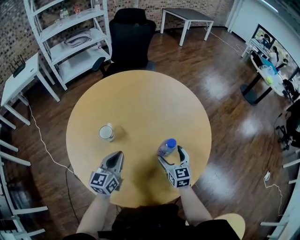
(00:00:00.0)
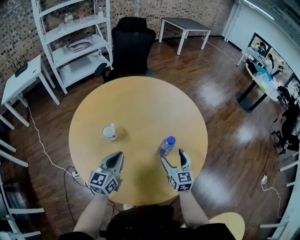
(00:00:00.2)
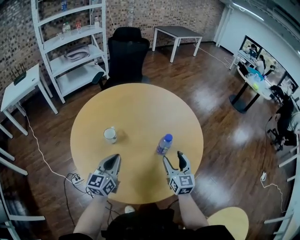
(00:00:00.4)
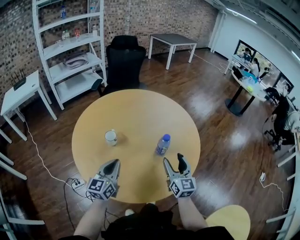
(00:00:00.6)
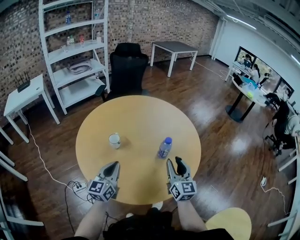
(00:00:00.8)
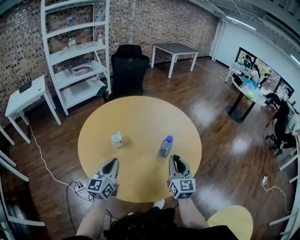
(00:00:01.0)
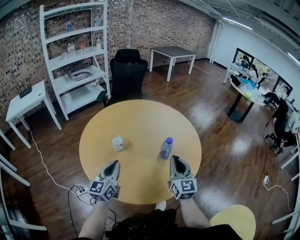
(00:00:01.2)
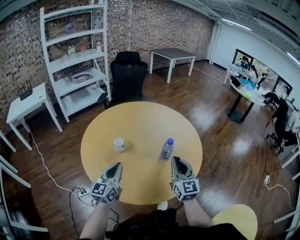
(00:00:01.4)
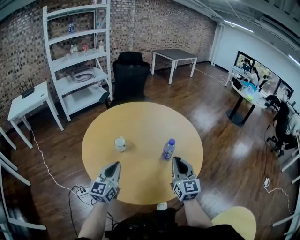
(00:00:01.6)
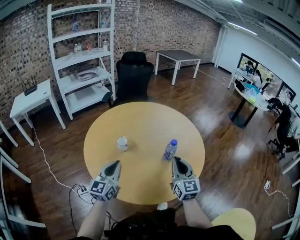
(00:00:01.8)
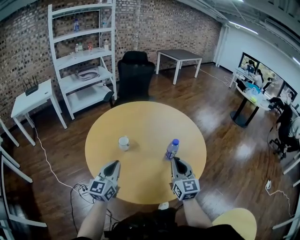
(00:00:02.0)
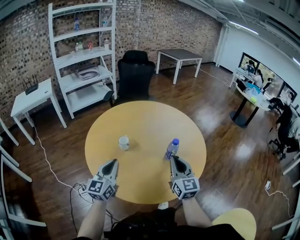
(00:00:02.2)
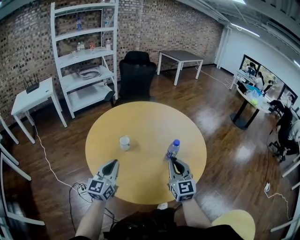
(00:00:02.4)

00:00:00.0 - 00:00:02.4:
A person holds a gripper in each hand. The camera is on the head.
00:00:00.0 - 00:00:01.2: The right gripper heads upward and backward, covering some 20 cm, swivels approximately 30 degrees, and closes its fingers. The left gripper travels backward, upward and to the left by roughly 15 cm.
00:00:01.2 - 00:00:02.4: There are only small adjustments of the grippers.

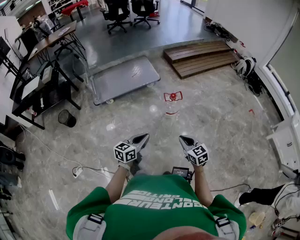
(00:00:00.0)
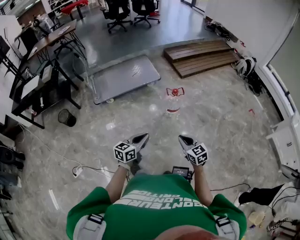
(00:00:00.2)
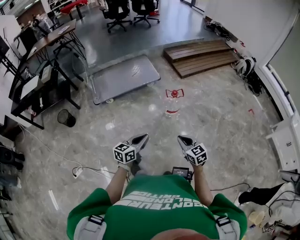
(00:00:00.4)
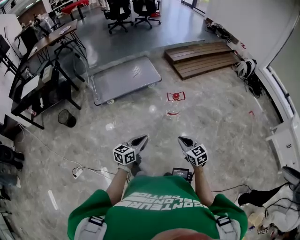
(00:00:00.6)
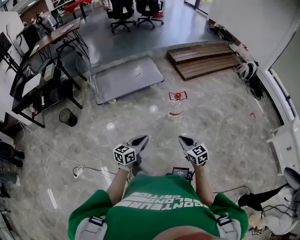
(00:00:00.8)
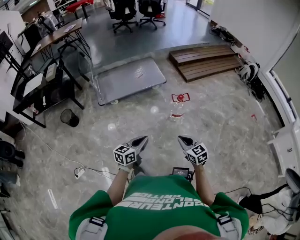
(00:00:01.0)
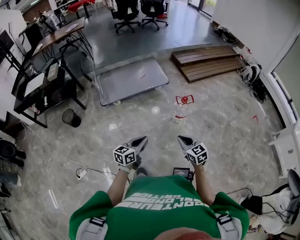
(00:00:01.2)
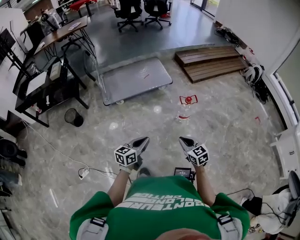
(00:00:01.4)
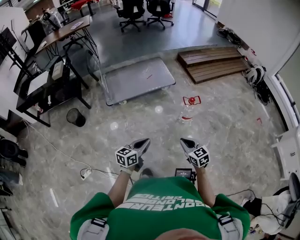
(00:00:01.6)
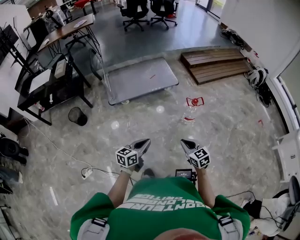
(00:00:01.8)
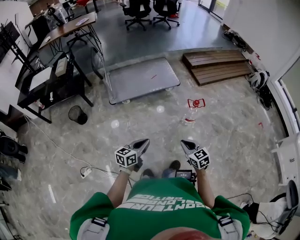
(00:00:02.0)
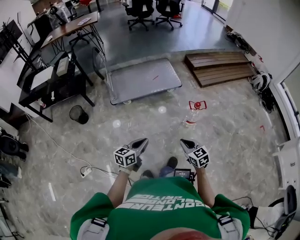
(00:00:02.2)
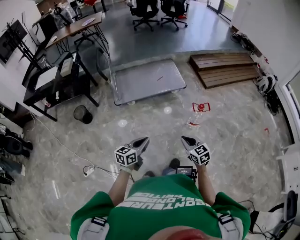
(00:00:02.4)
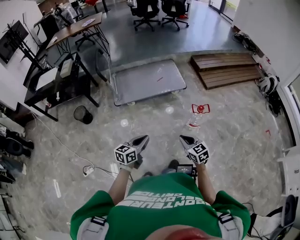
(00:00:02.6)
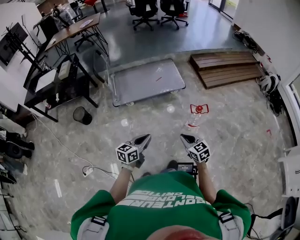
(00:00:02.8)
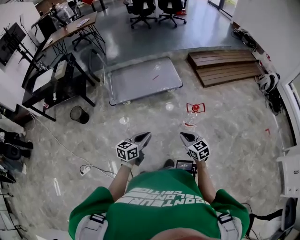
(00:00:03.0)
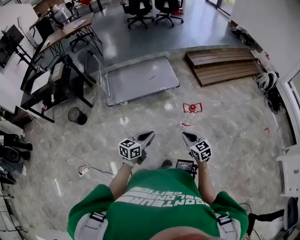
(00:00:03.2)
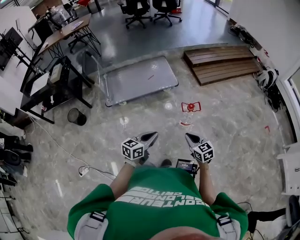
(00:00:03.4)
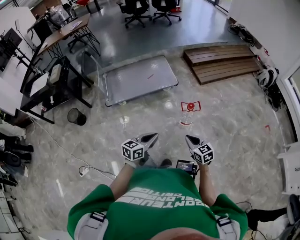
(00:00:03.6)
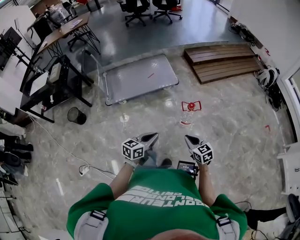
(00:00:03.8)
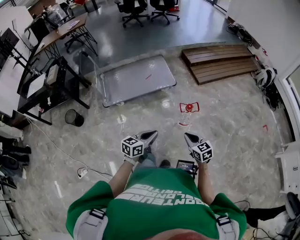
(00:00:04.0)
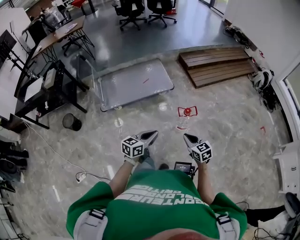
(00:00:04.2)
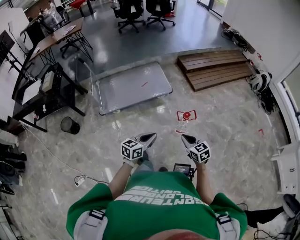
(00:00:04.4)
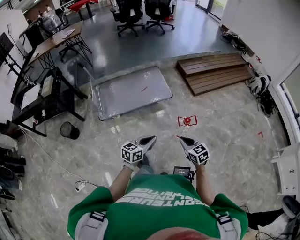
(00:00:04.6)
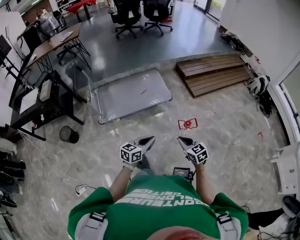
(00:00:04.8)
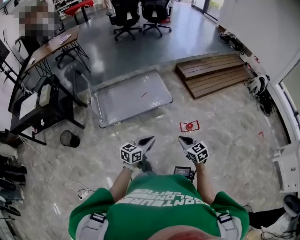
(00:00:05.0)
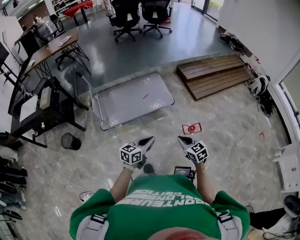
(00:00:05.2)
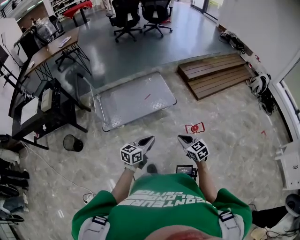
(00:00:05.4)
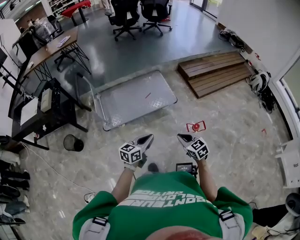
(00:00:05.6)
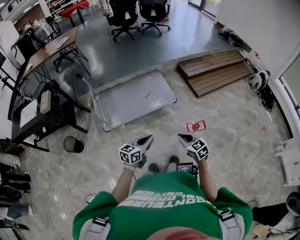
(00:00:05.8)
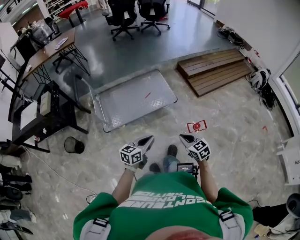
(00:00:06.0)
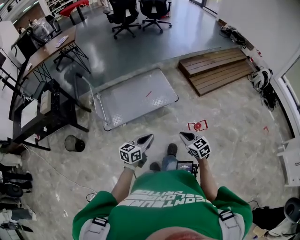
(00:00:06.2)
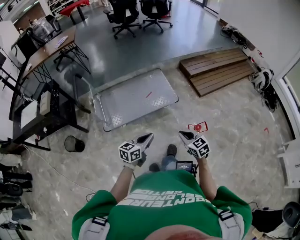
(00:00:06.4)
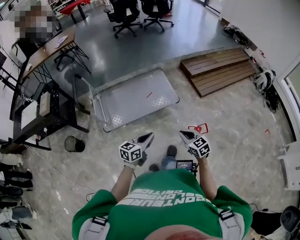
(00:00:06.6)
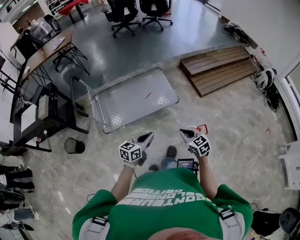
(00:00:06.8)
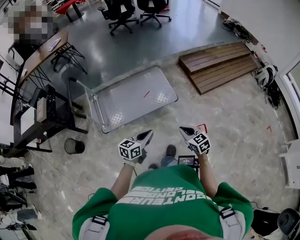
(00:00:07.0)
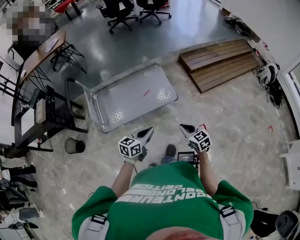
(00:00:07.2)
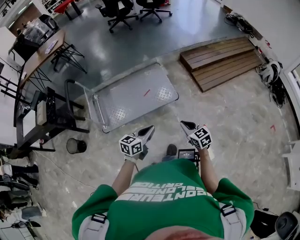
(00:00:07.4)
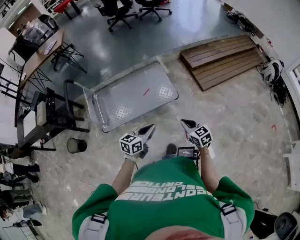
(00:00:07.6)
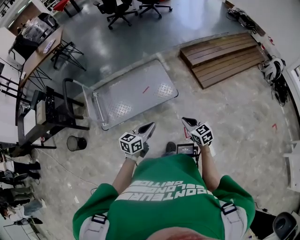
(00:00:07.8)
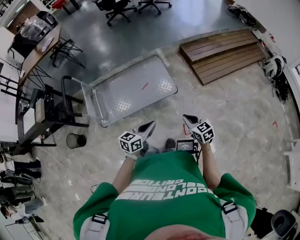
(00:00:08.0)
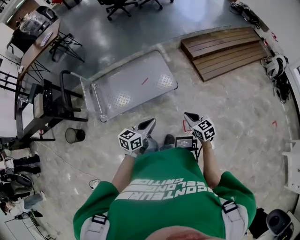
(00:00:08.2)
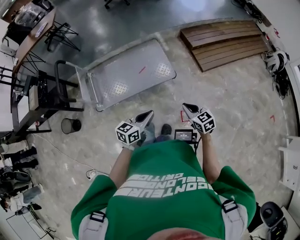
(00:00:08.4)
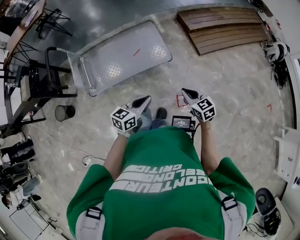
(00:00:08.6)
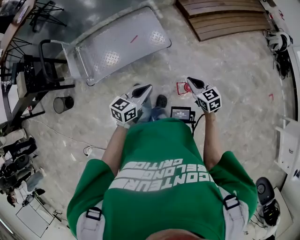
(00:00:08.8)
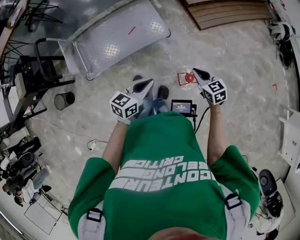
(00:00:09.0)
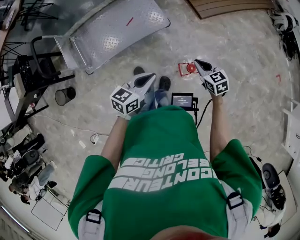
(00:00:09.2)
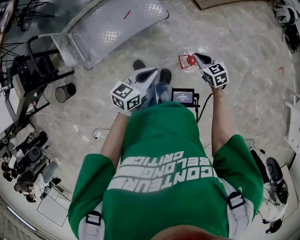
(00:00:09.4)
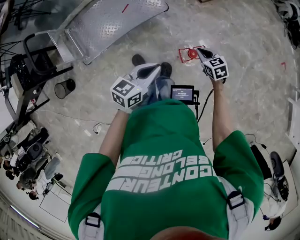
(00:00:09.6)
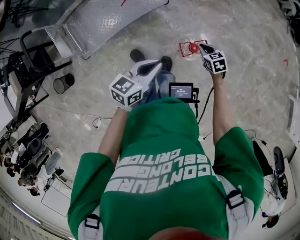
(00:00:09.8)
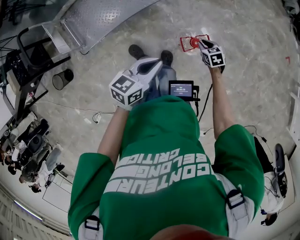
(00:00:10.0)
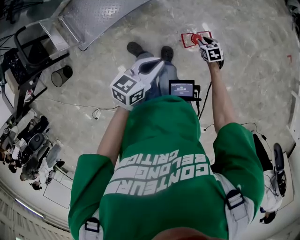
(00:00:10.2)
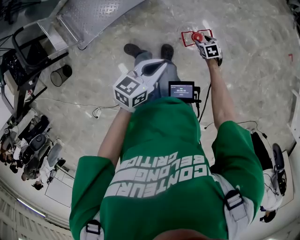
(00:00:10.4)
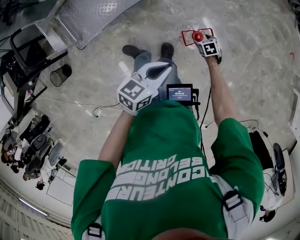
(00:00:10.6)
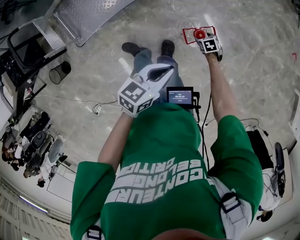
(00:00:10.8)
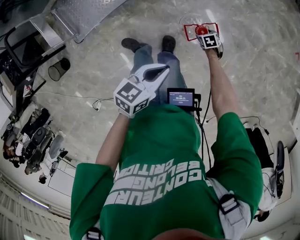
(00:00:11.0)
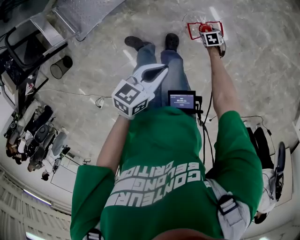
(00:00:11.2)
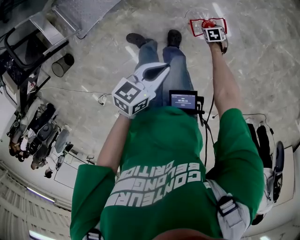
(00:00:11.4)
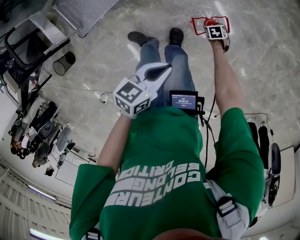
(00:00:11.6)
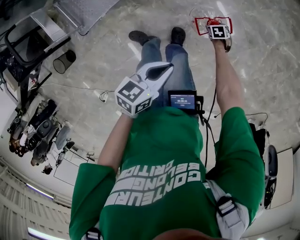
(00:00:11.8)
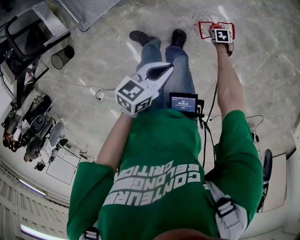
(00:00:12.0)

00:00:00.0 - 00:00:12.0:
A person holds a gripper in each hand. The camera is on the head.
00:00:00.0 - 00:00:01.6: The grippers both shift to the left by about 15 cm.
00:00:01.6 - 00:00:03.0: The two grippers go some 15 cm forward and to the right.
00:00:03.0 - 00:00:04.4: The two grippers go roughly 10 cm forward and to the right.
00:00:04.4 - 00:00:06.0: Both grippers travel together to the left and forward, some 20 cm.
00:00:06.0 - 00:00:07.6: The two grippers go roughly 25 cm forward and to the right.
00:00:07.6 - 00:00:09.0: The left gripper travels to the right by roughly 5 cm. The right gripper travels to the right and downward by roughly 15 cm.
00:00:09.0 - 00:00:10.4: The right gripper heads downward, covering roughly 30 cm, turns by roughly 30 degrees, and opens. The left gripper heads to the right and downward, covering about 10 cm.
00:00:10.4 - 00:00:12.0: The right gripper moves downward, about 15 cm. The left gripper heads downward, covering about 10 cm.

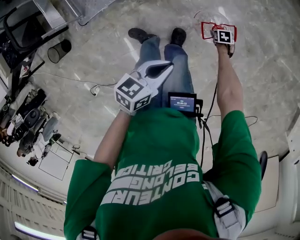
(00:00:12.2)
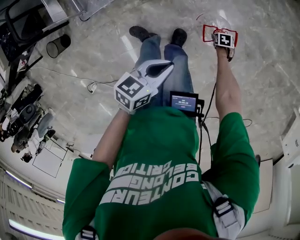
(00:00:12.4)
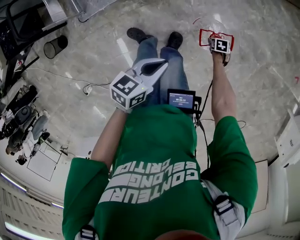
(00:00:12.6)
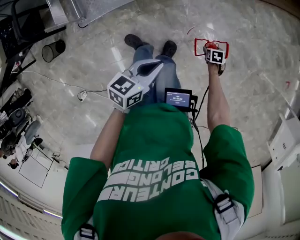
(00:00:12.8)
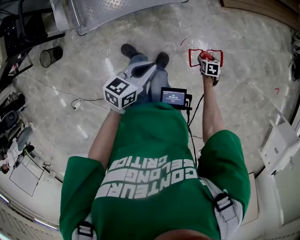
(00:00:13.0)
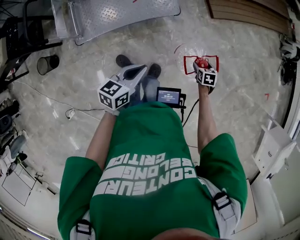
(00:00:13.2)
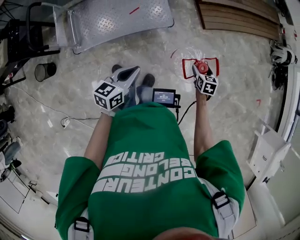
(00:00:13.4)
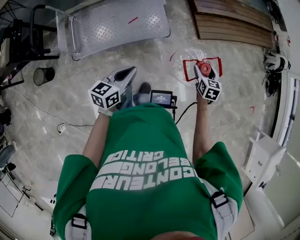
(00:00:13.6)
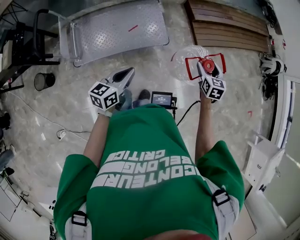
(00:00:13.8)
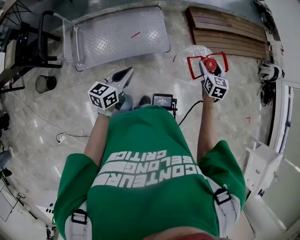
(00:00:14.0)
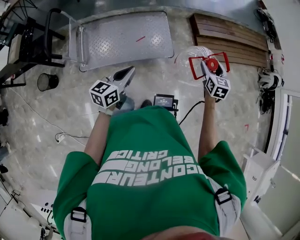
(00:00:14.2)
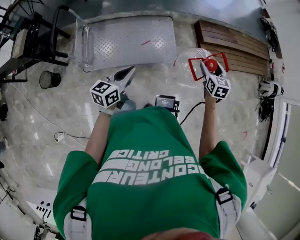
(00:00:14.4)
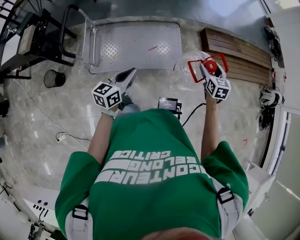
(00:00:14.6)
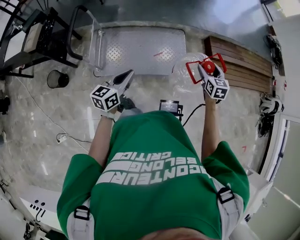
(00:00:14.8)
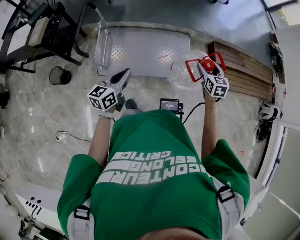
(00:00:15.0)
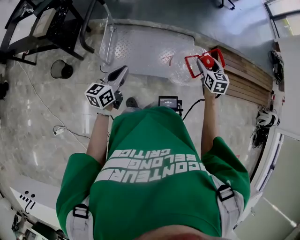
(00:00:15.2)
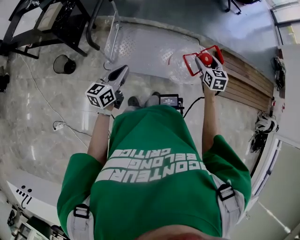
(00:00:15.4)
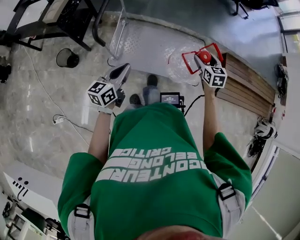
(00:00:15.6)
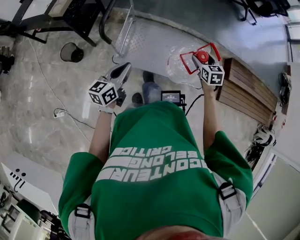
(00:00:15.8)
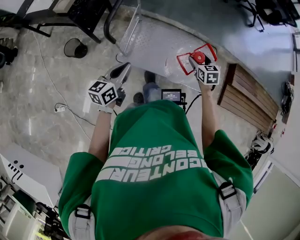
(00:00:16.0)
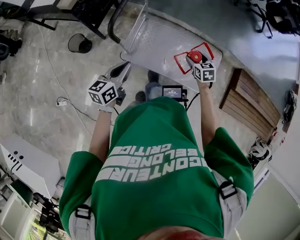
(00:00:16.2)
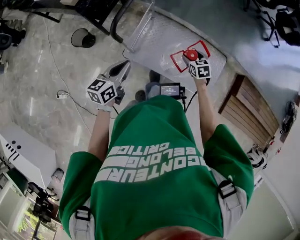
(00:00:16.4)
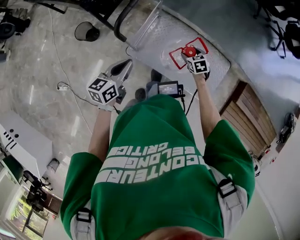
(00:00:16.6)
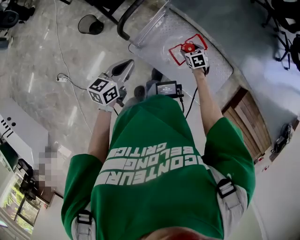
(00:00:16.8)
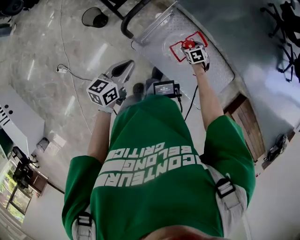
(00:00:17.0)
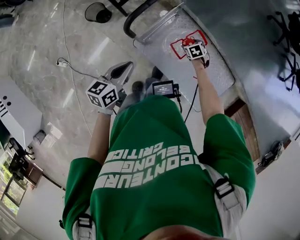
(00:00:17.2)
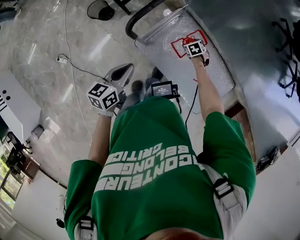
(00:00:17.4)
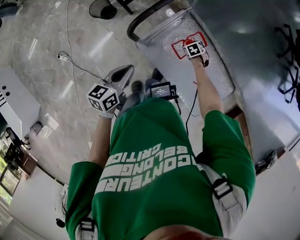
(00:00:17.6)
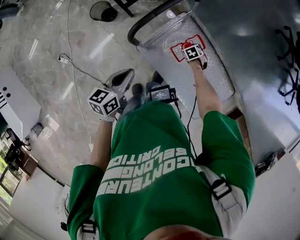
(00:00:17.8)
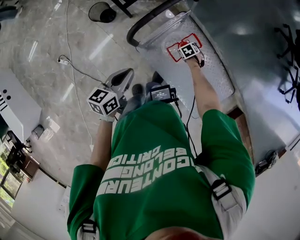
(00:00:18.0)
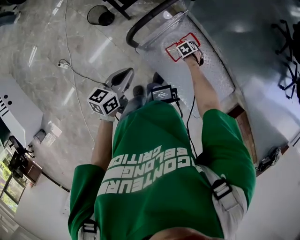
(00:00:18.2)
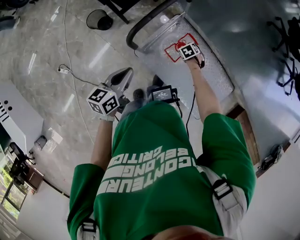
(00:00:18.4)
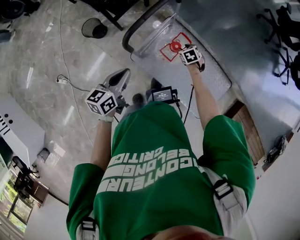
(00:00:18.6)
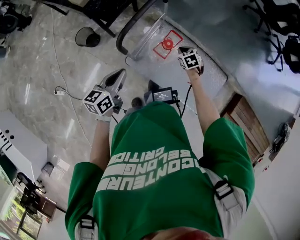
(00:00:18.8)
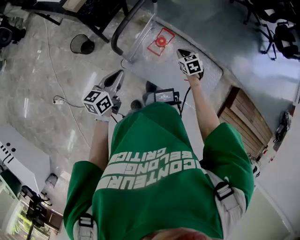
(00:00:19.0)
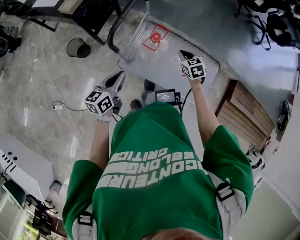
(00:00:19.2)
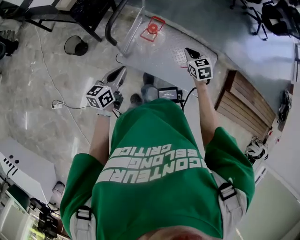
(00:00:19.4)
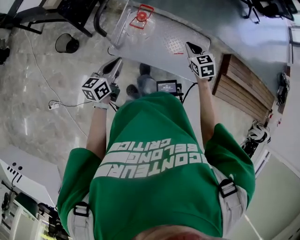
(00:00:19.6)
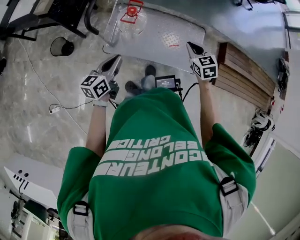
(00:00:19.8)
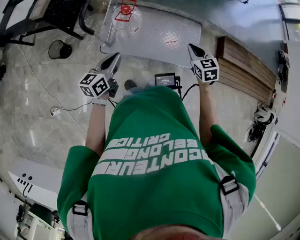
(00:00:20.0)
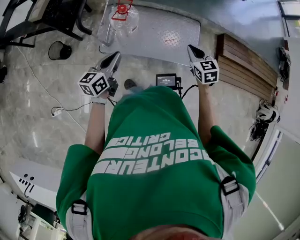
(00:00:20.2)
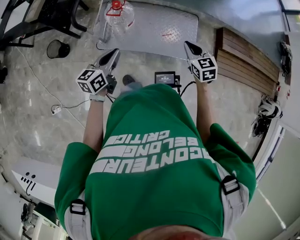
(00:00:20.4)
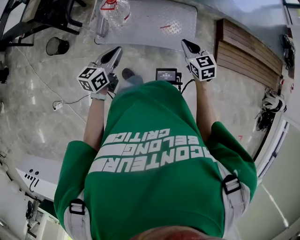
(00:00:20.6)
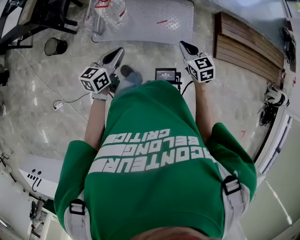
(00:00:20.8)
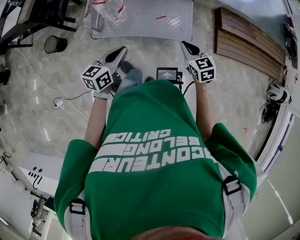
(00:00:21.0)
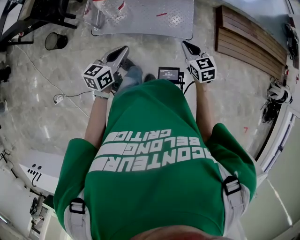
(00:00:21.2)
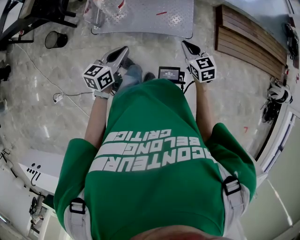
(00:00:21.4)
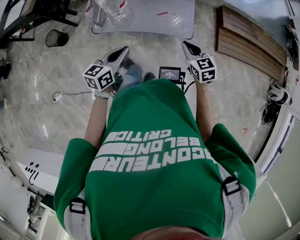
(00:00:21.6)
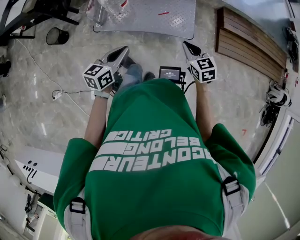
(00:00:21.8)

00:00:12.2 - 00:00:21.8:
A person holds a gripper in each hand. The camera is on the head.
00:00:12.2 - 00:00:13.8: The right gripper moves upward, about 50 cm, and tips its fingers upward by about 50 degrees, while the left gripper moves some 25 cm, and swivels about 30 degrees.
00:00:13.8 - 00:00:15.4: The right gripper ends up about 40 cm from where it was, and rotates about 30 degrees, while the left gripper ends up about 35 cm from where it was, and turns by some 30 degrees.
00:00:15.4 - 00:00:17.0: The right gripper moves approximately 50 cm, and points its fingers about 30 degrees further downward; the left gripper ends up about 15 cm from where it was, and turns by approximately 30 degrees.
00:00:17.0 - 00:00:18.6: The left gripper changes place by roughly 5 cm. Meanwhile the right gripper reaches some 10 cm downward, then returns, and closes.
00:00:18.6 - 00:00:20.2: The right gripper moves about 50 cm, tilts its fingers approximately 30 degrees upward, and closes its fingers. Meanwhile the left gripper moves about 20 cm, and rotates roughly 30 degrees.
00:00:20.2 - 00:00:21.8: The left gripper moves to the right and backward, roughly 25 cm; the right gripper is displaced backward and to the right by some 20 cm.
